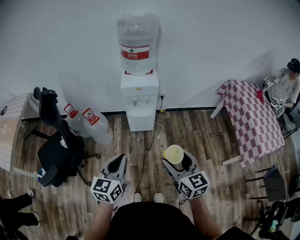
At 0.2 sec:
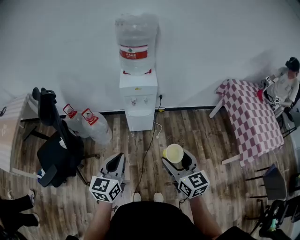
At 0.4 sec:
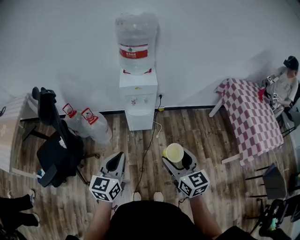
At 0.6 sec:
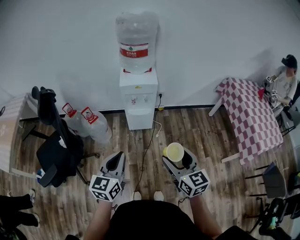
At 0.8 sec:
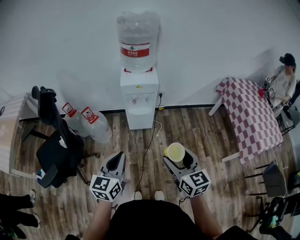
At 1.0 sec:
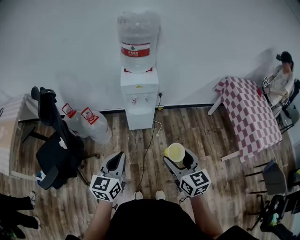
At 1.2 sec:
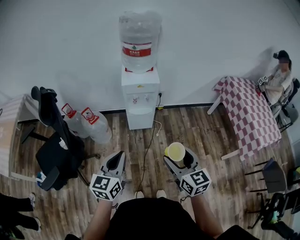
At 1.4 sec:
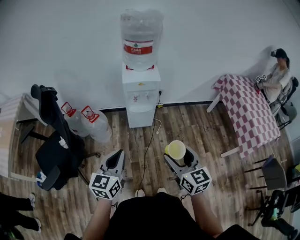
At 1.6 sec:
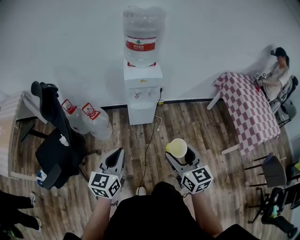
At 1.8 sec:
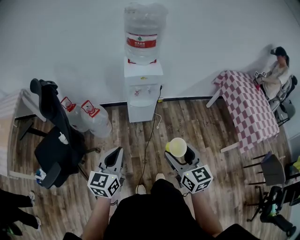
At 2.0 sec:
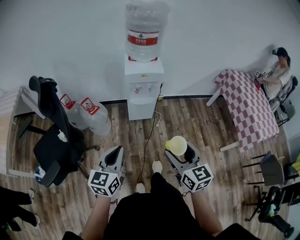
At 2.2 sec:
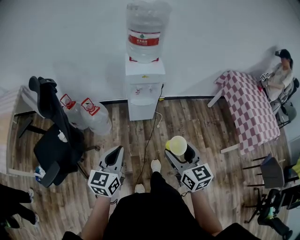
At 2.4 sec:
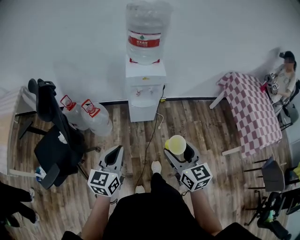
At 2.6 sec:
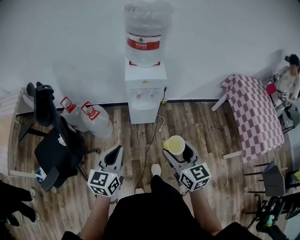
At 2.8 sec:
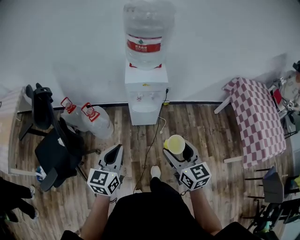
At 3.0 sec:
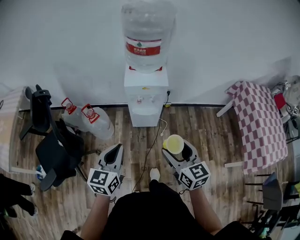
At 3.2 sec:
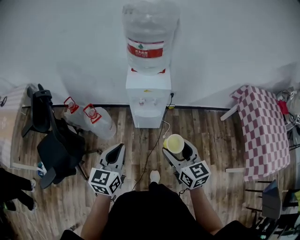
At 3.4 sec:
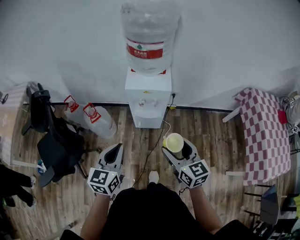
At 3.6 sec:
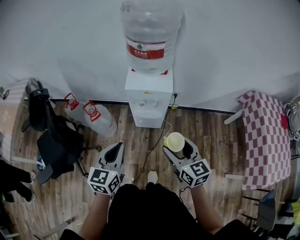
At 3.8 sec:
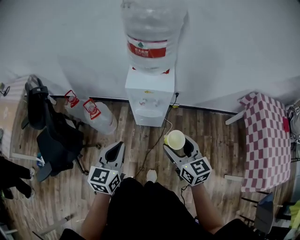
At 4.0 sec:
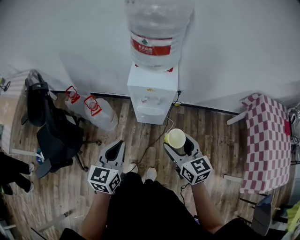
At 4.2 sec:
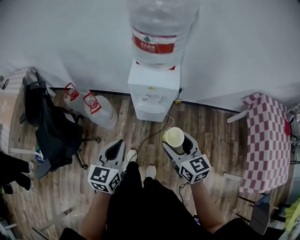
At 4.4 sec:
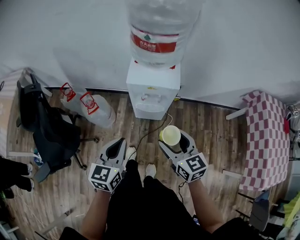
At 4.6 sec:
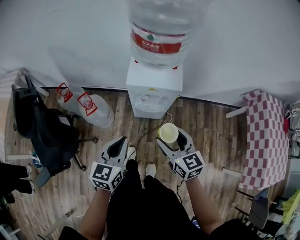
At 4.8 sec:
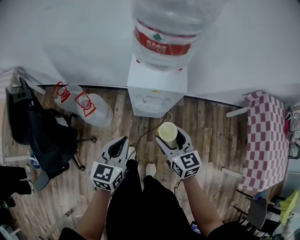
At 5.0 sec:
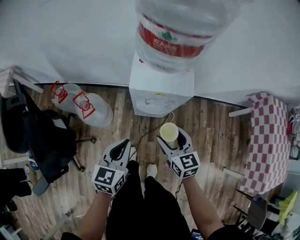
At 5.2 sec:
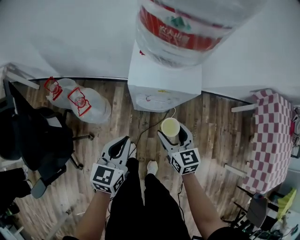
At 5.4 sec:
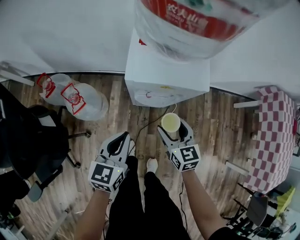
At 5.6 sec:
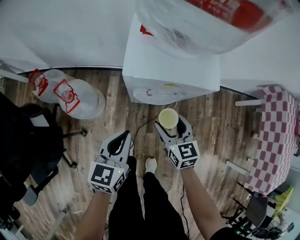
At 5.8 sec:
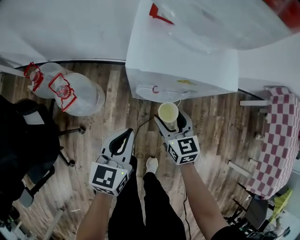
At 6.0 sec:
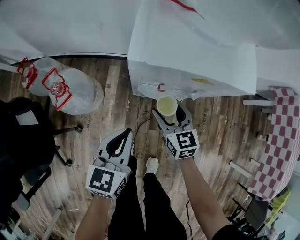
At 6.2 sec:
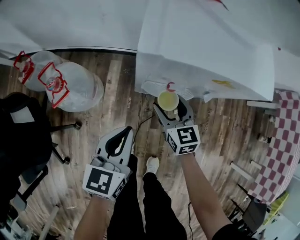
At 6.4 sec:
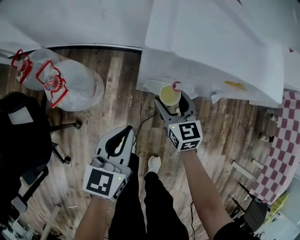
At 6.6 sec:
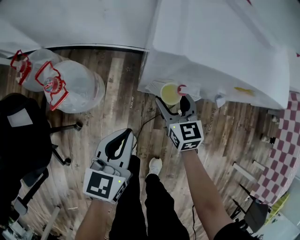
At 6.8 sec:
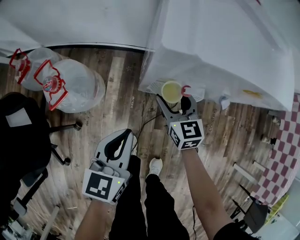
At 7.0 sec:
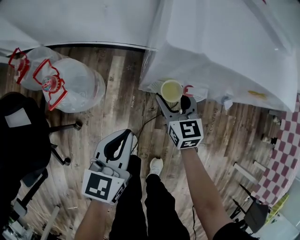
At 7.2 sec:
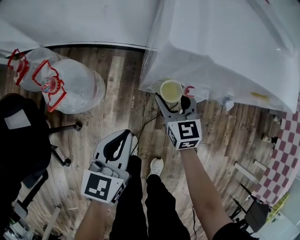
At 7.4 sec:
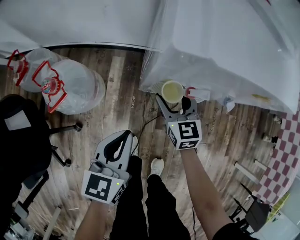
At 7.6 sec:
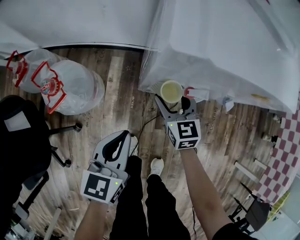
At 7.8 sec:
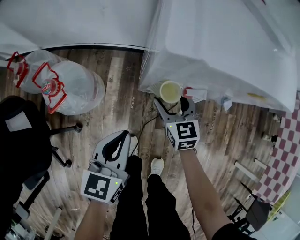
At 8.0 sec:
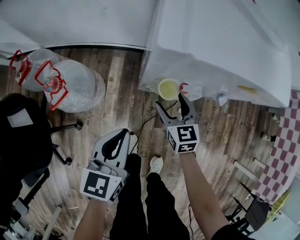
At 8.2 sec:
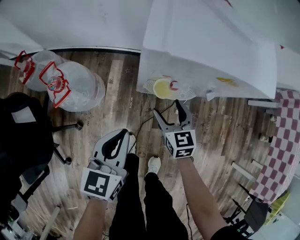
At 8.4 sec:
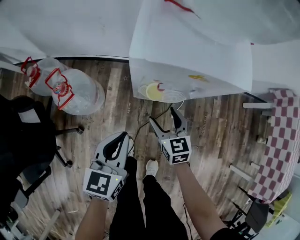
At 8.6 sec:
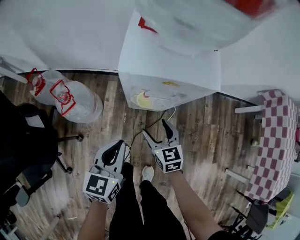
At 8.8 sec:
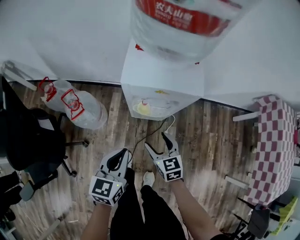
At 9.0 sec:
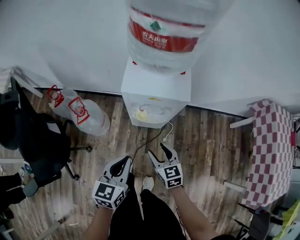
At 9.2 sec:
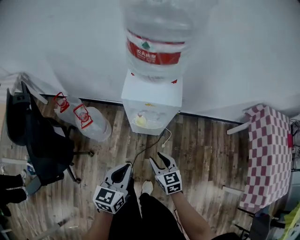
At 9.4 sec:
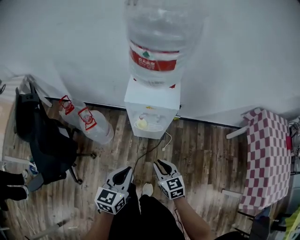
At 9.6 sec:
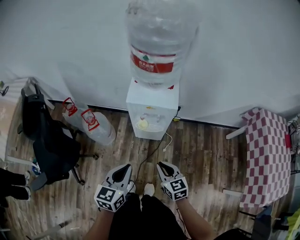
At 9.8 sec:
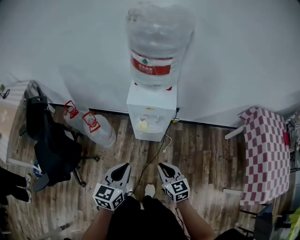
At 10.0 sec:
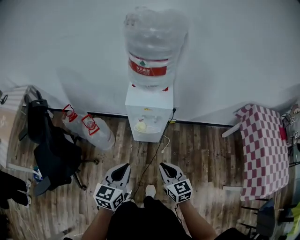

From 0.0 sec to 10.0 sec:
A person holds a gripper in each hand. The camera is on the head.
From 0.0 sec to 1.4 sec: The two grippers go roughly 5 cm to the left.
From 1.4 sec to 2.8 sec: Both grippers travel together forward, roughly 10 cm.
From 2.8 sec to 4.2 sec: The left gripper goes approximately 10 cm forward and to the right. Meanwhile the right gripper goes some 15 cm forward.
From 4.2 sec to 5.8 sec: Both grippers travel together downward and forward, about 35 cm.
From 5.8 sec to 7.2 sec: The right gripper heads downward, forward and to the left, covering about 15 cm. The left gripper goes roughly 10 cm downward.
From 7.2 sec to 8.6 sec: The right gripper moves backward and upward, approximately 15 cm, while the left gripper shifts about 15 cm upward.
From 8.6 sec to 10.0 sec: The grippers both shift upward and backward by about 30 cm. The right gripper closes up.

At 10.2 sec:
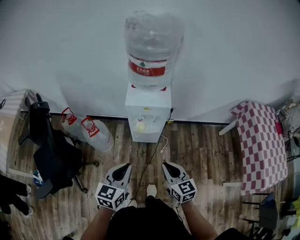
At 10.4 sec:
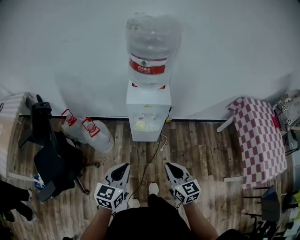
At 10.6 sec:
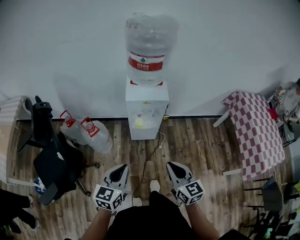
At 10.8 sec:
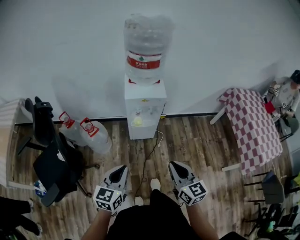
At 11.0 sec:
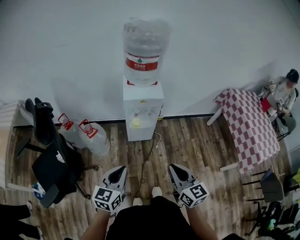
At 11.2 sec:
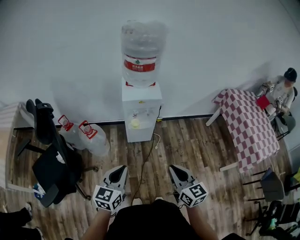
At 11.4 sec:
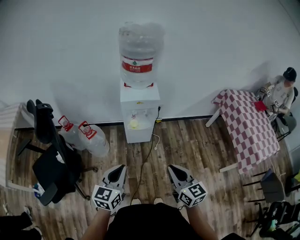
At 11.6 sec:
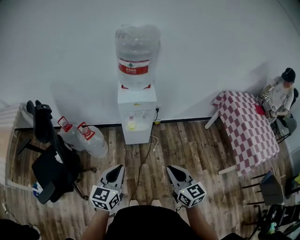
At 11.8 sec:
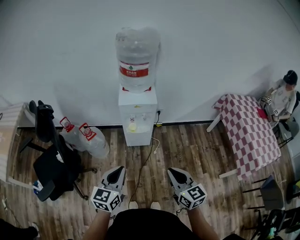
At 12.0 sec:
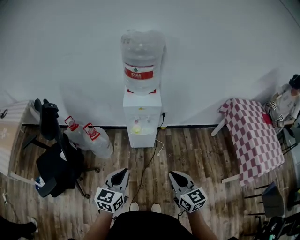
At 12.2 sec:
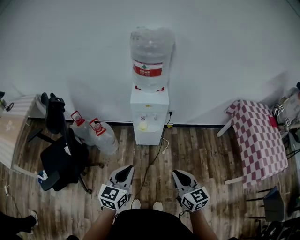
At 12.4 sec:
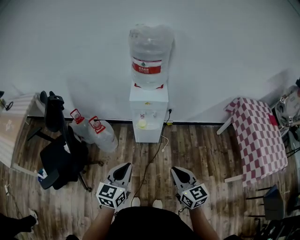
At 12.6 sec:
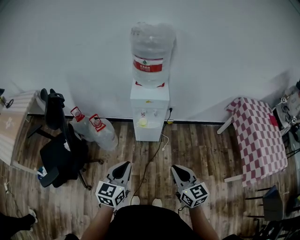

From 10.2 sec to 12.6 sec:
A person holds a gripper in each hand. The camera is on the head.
From 10.2 sec to 11.4 sec: The right gripper shifts some 20 cm backward and upward. Meanwhile the left gripper shifts approximately 10 cm backward.
From 11.4 sec to 12.6 sec: The grippers make only small movements.

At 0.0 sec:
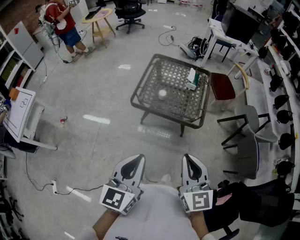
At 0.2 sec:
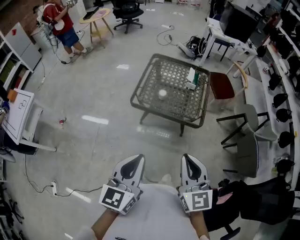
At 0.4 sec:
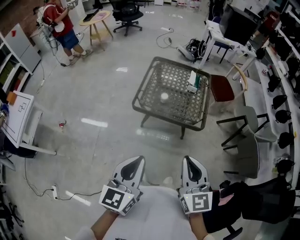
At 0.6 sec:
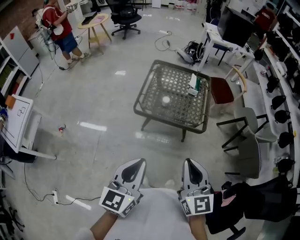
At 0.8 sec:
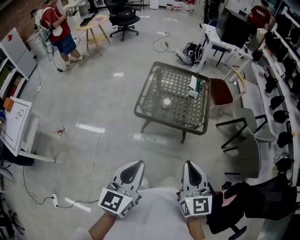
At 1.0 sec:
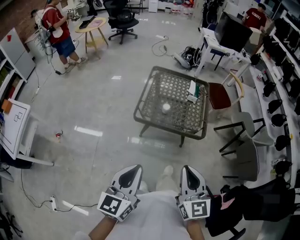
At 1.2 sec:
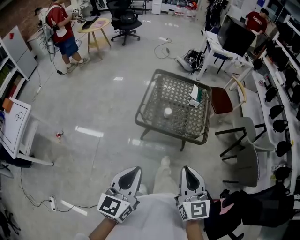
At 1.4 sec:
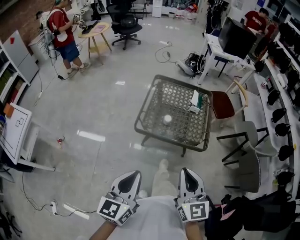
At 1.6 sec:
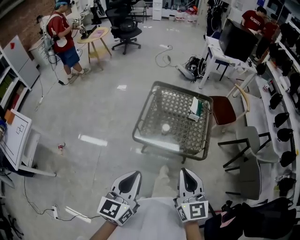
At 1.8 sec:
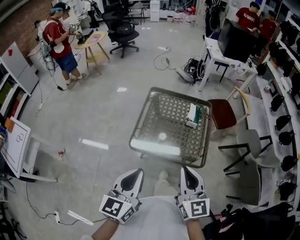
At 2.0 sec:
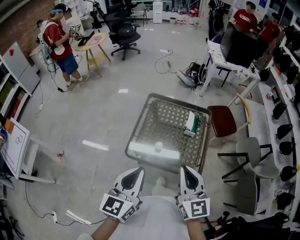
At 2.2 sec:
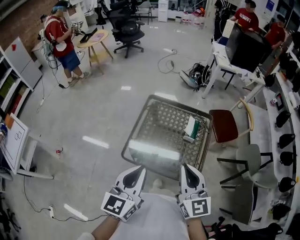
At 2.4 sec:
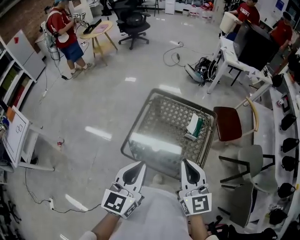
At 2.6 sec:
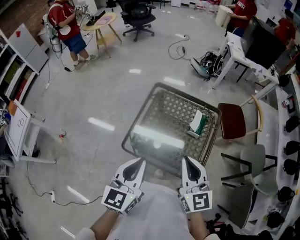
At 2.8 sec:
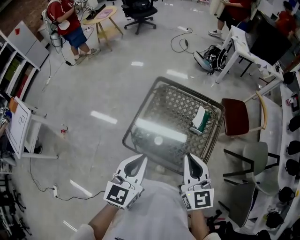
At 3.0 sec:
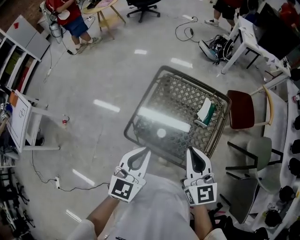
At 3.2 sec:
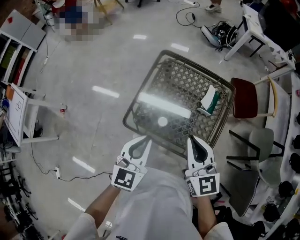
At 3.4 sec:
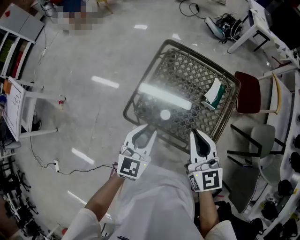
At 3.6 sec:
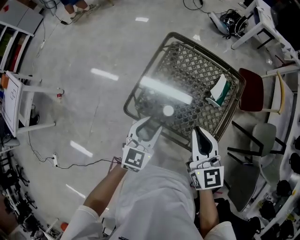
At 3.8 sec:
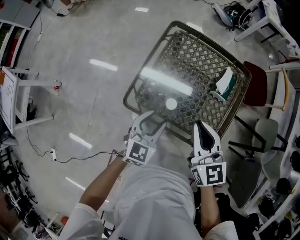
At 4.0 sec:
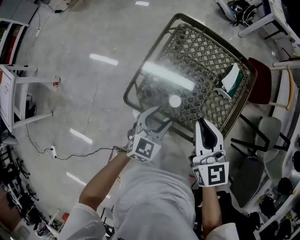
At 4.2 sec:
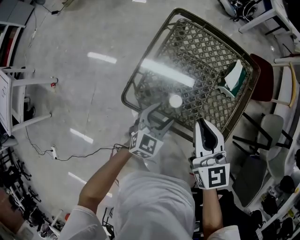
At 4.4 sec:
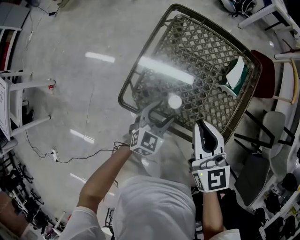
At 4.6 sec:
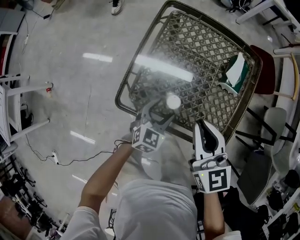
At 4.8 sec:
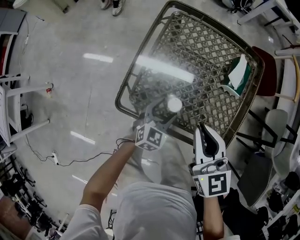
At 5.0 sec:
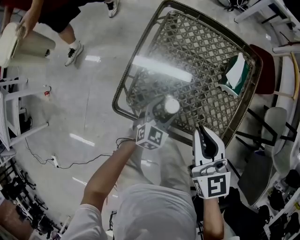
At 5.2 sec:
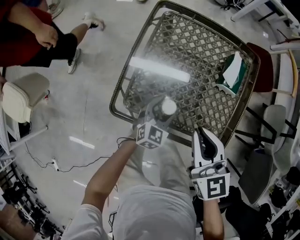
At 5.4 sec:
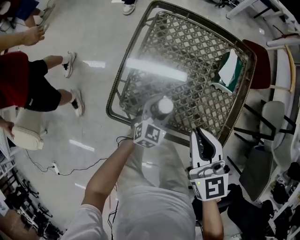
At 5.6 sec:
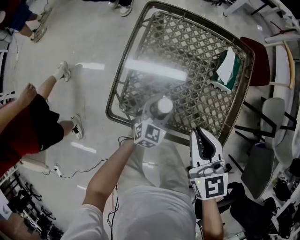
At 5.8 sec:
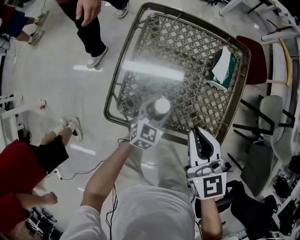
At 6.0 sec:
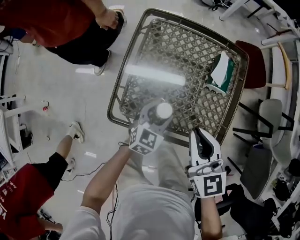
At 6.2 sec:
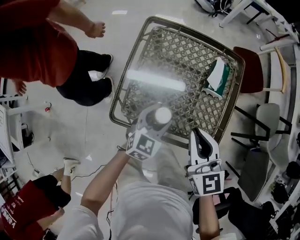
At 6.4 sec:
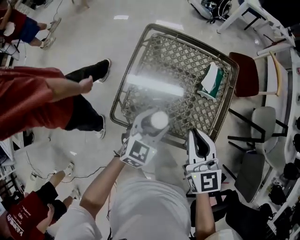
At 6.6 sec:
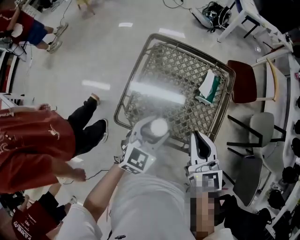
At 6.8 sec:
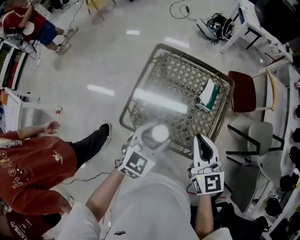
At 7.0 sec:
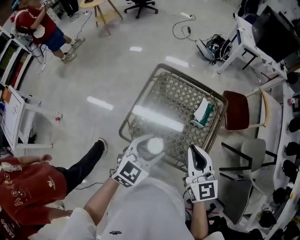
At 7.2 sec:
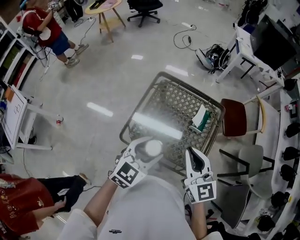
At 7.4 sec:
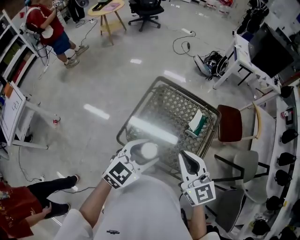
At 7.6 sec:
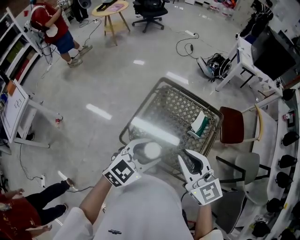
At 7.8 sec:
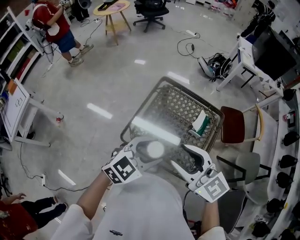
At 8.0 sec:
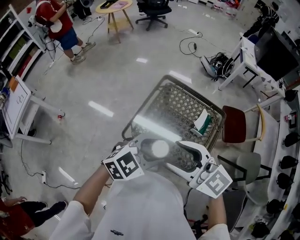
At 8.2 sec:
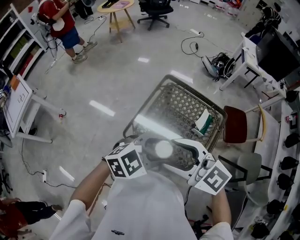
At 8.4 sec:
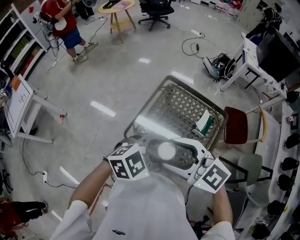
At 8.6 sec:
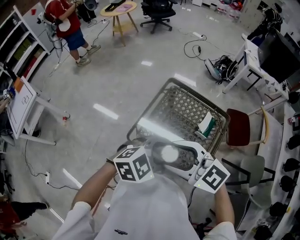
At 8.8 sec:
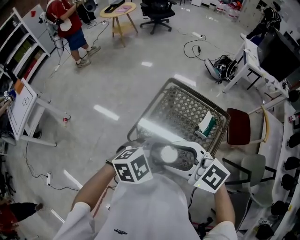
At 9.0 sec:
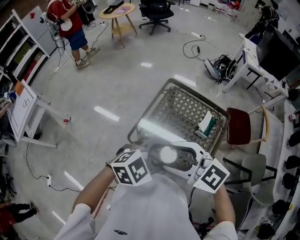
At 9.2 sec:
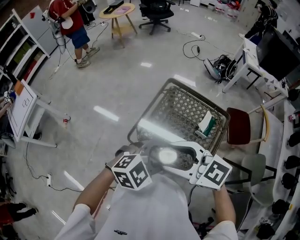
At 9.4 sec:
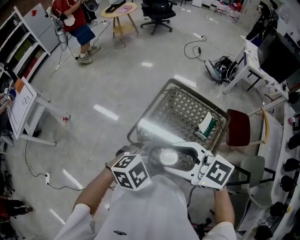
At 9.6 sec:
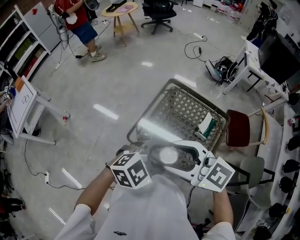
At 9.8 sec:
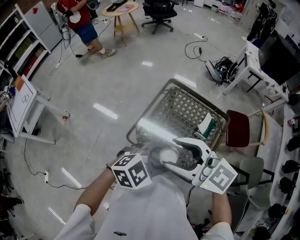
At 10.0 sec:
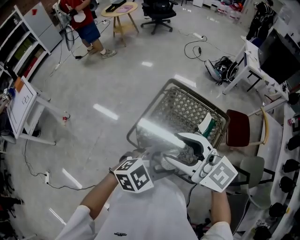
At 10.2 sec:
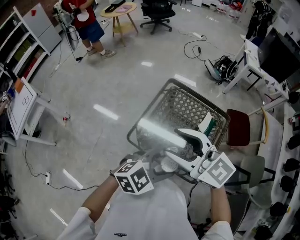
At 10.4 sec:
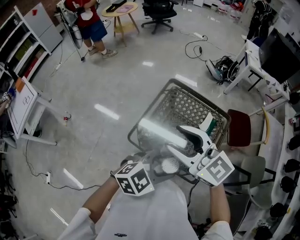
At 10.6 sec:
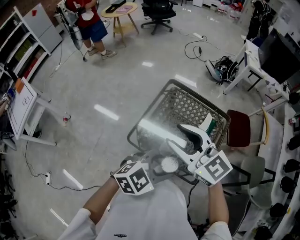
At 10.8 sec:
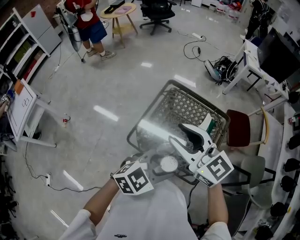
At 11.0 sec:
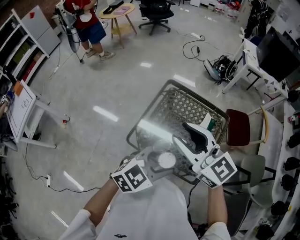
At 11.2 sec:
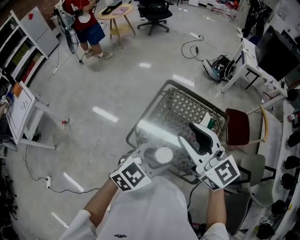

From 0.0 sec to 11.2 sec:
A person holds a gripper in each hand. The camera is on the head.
From 0.0 sec to 1.6 sec: The two grippers go roughly 15 cm forward and to the left.
From 1.6 sec to 3.2 sec: The left gripper heads forward, to the right and downward, covering about 35 cm. The right gripper heads forward, covering about 30 cm.
From 3.2 sec to 4.8 sec: The right gripper moves downward, roughly 20 cm, while the left gripper is displaced downward by roughly 35 cm, swivels about 20 degrees, and opens its fingers.
From 4.8 sec to 6.4 sec: The right gripper goes roughly 5 cm upward. Meanwhile the left gripper goes some 15 cm upward.
From 6.4 sec to 8.0 sec: The grippers both shift upward by some 20 cm. The right gripper turns by about 50 degrees, and opens up.
From 8.0 sec to 9.6 sec: The grippers stay close to where they were, moving slightly.
From 9.6 sec to 11.2 sec: The right gripper ends up roughly 10 cm from where it was, swivels roughly 30 degrees, and closes its fingers.
